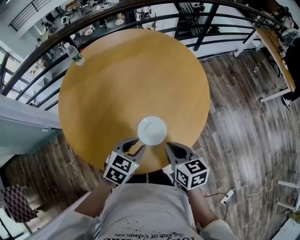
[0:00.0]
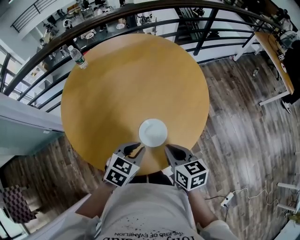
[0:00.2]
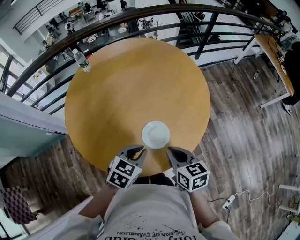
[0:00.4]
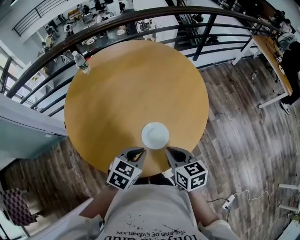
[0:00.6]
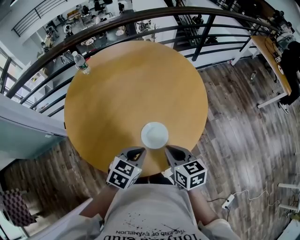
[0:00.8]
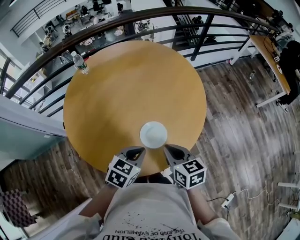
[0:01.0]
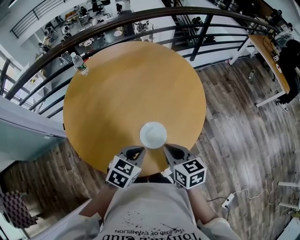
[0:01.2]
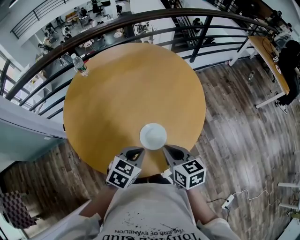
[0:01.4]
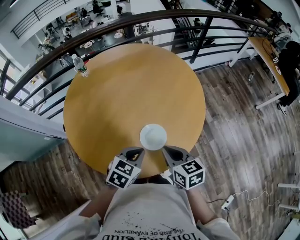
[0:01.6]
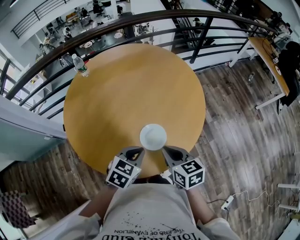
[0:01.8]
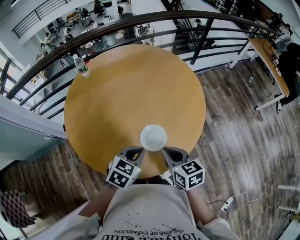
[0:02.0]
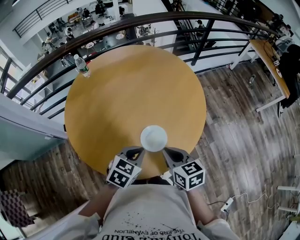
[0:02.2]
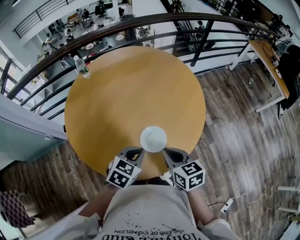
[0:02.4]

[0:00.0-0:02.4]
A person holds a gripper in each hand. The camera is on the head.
0:00.0 to 0:01.2: The left gripper closes.
0:01.2 to 0:02.4: Both grippers stay about where they are.

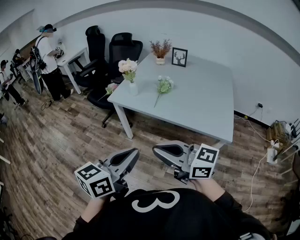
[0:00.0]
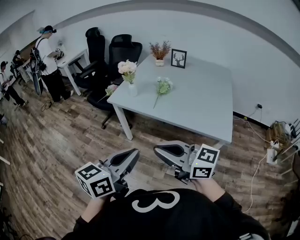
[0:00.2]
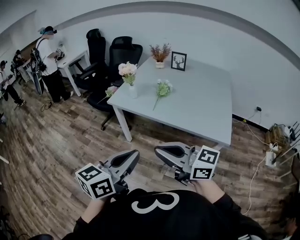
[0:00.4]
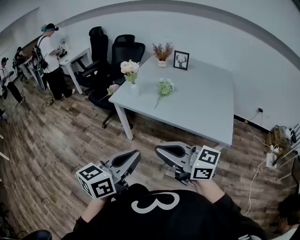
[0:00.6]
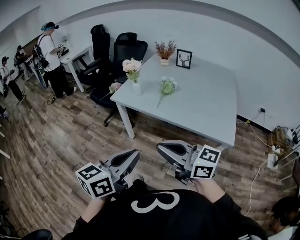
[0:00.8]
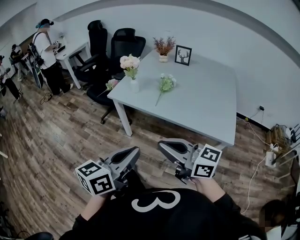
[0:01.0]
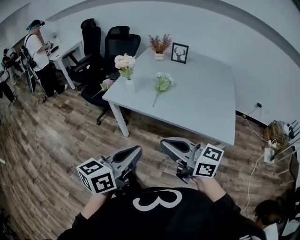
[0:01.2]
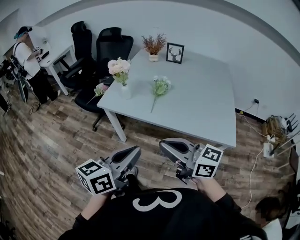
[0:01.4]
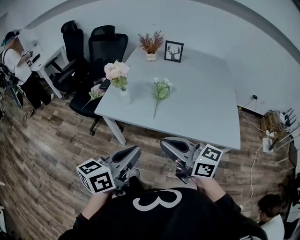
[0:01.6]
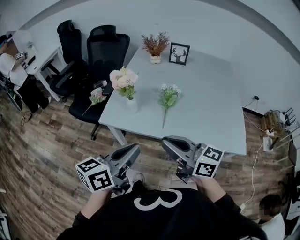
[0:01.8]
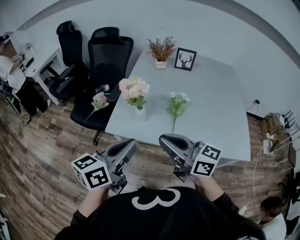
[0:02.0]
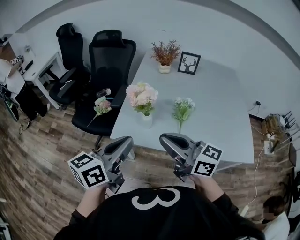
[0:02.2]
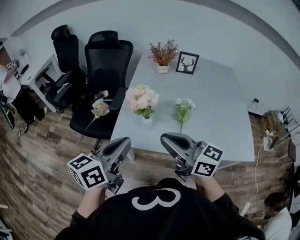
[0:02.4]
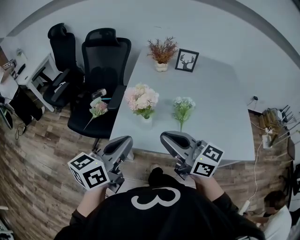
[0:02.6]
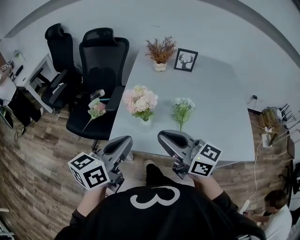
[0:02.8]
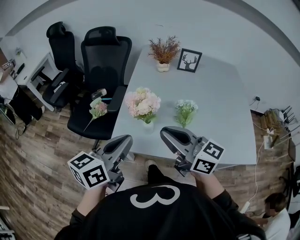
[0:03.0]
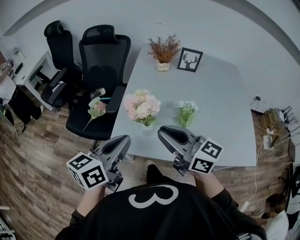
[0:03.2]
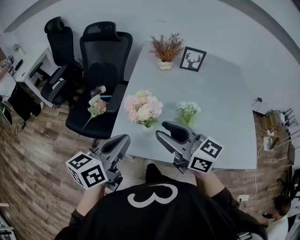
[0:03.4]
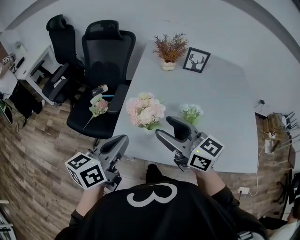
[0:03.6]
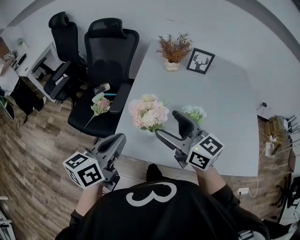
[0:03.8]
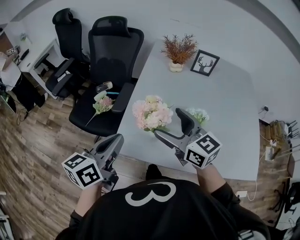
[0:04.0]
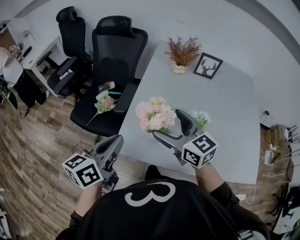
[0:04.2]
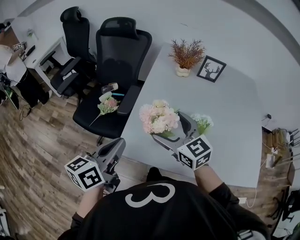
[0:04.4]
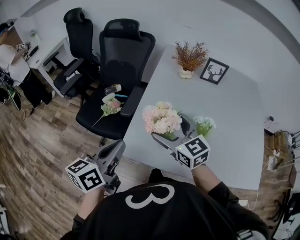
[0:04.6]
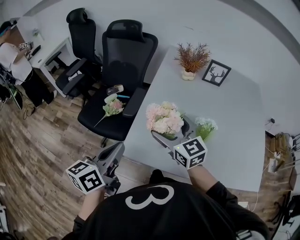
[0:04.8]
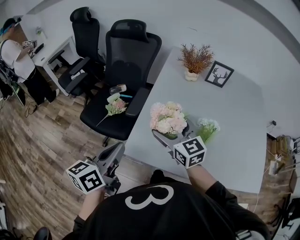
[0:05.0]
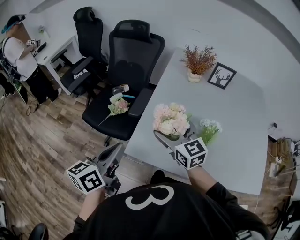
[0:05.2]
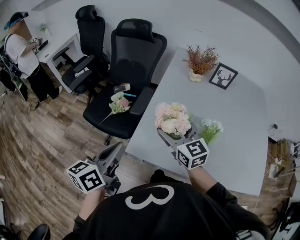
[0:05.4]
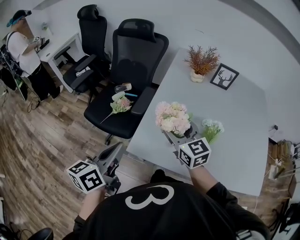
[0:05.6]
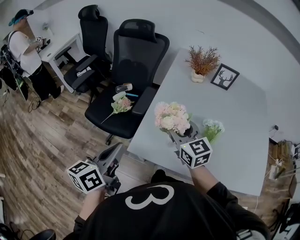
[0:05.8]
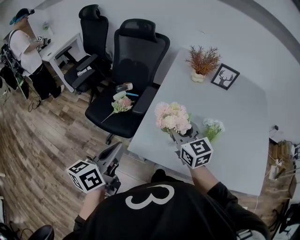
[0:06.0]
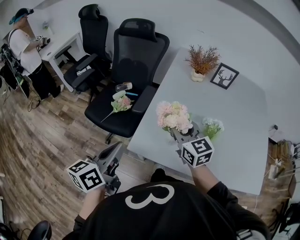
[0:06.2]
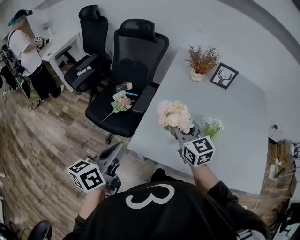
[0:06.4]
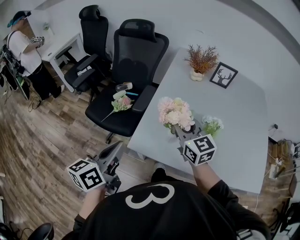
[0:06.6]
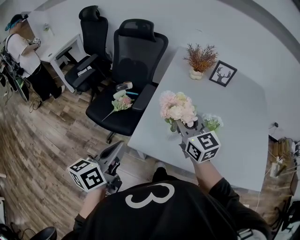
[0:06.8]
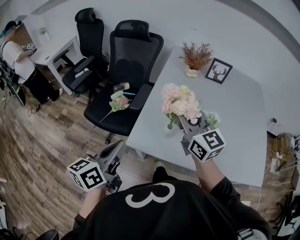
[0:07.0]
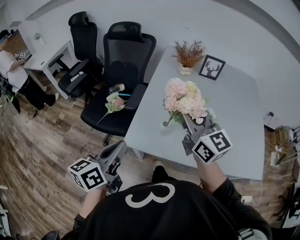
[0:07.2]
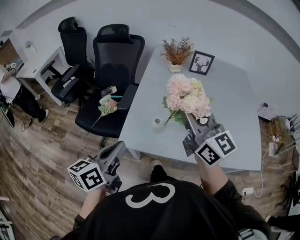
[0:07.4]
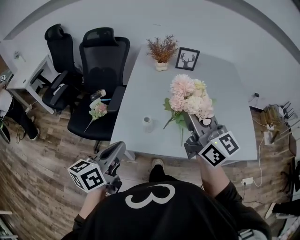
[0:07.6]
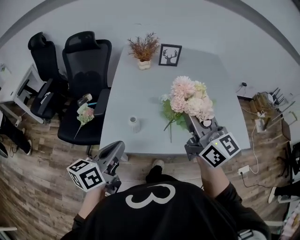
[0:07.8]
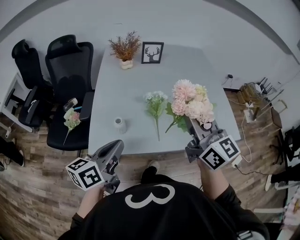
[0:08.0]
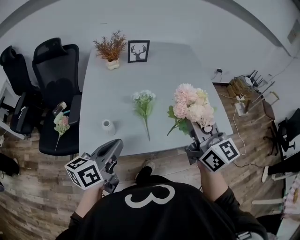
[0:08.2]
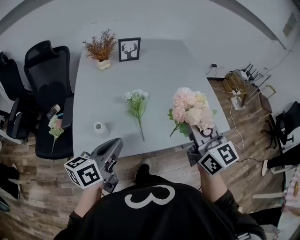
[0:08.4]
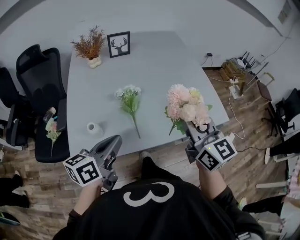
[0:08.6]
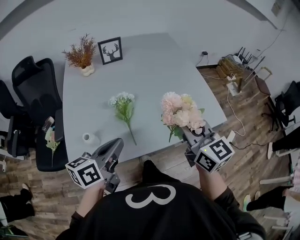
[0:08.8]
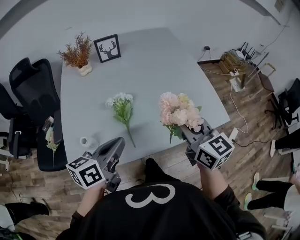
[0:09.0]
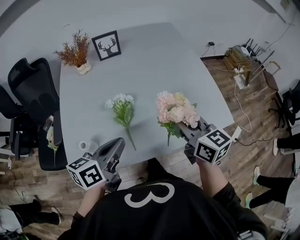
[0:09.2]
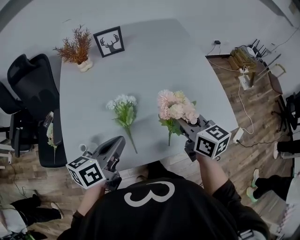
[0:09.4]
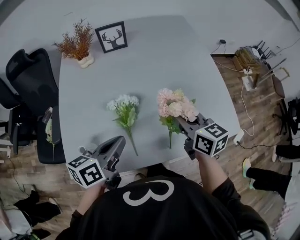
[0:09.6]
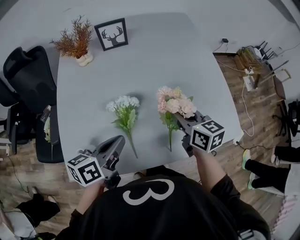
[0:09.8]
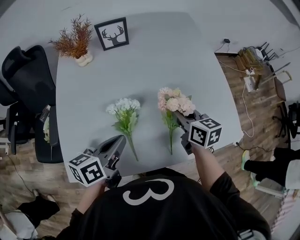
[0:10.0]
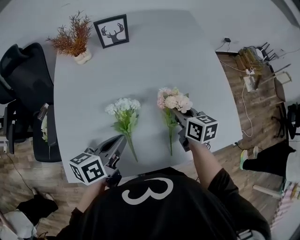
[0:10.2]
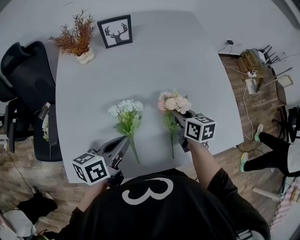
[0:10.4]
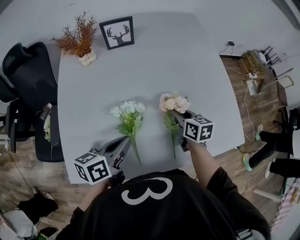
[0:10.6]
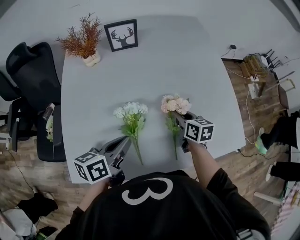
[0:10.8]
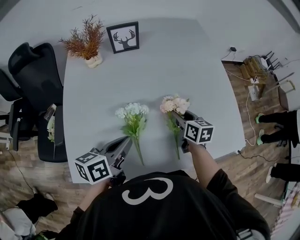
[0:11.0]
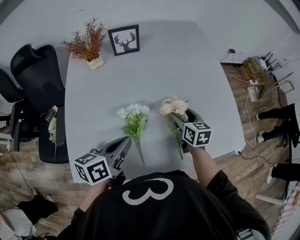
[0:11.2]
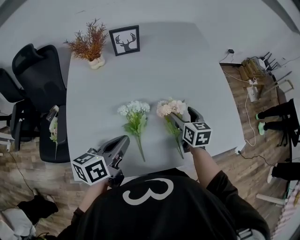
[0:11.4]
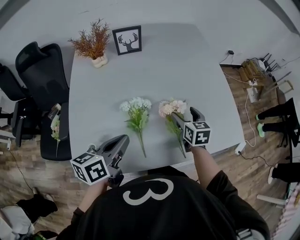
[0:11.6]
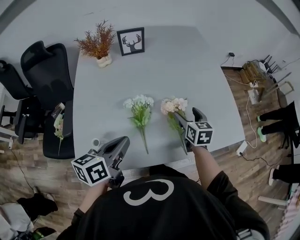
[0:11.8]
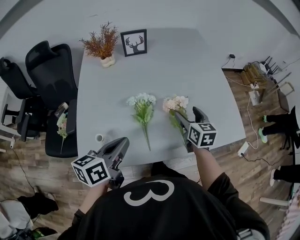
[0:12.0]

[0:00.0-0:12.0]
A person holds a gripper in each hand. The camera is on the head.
0:00.0 to 0:01.6: Both grippers move forward, about 20 cm. The right gripper turns by roughly 20 degrees.
0:01.6 to 0:03.0: Both grippers travel together forward and to the left, some 30 cm.
0:03.0 to 0:04.4: The left gripper shifts roughly 10 cm to the left and forward; the right gripper travels forward and downward by roughly 15 cm, swivels about 30 degrees, and opens up.
0:04.4 to 0:06.0: The left gripper travels to the left by approximately 5 cm, while the right gripper closes its fingers.
0:06.0 to 0:07.6: The left gripper heads to the right, covering some 10 cm. The right gripper heads upward, to the right and backward, covering approximately 25 cm, and changes its angle by approximately 30 degrees.
0:07.6 to 0:09.0: The left gripper moves roughly 25 cm, and turns by some 30 degrees; the right gripper shifts by some 25 cm, and changes its angle by approximately 30 degrees.
0:09.0 to 0:10.4: The left gripper is displaced forward and downward by roughly 15 cm, while the right gripper moves downward and forward, roughly 30 cm, and rotates approximately 30 degrees.
0:10.4 to 0:12.0: The two grippers go approximately 10 cm backward and upward. The right gripper opens up.

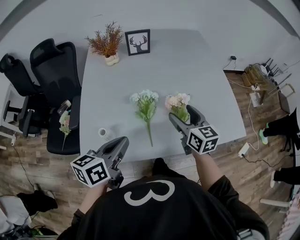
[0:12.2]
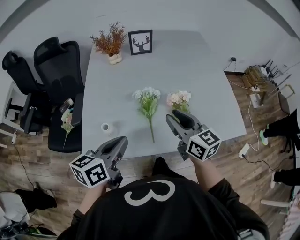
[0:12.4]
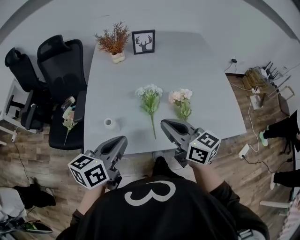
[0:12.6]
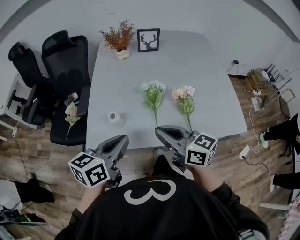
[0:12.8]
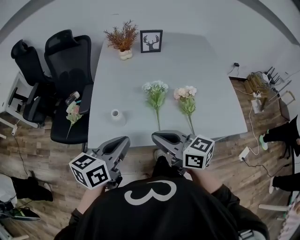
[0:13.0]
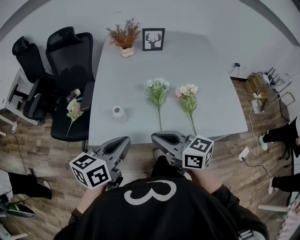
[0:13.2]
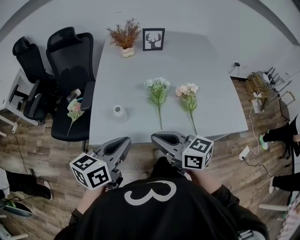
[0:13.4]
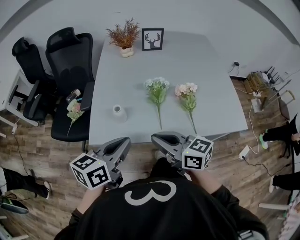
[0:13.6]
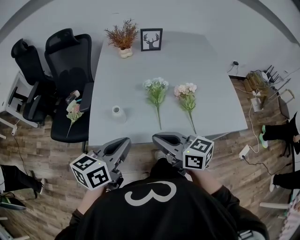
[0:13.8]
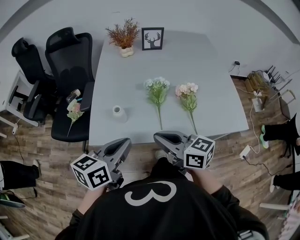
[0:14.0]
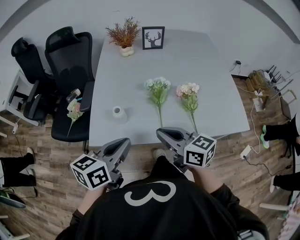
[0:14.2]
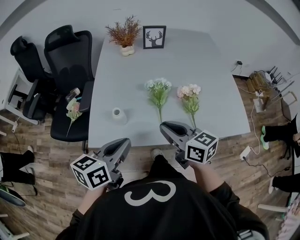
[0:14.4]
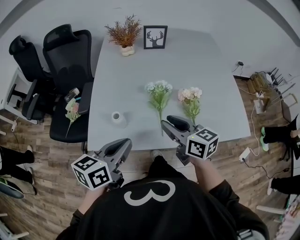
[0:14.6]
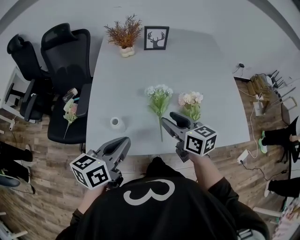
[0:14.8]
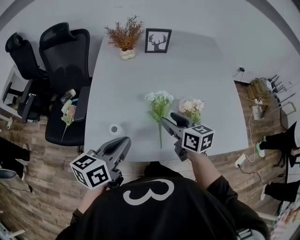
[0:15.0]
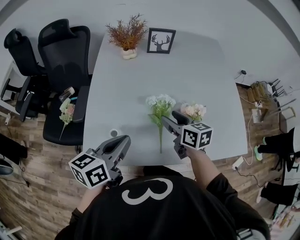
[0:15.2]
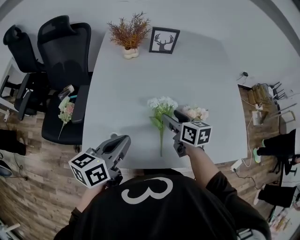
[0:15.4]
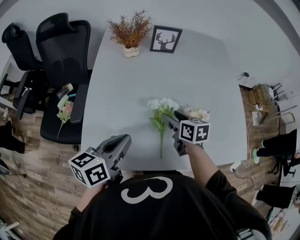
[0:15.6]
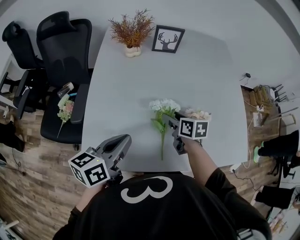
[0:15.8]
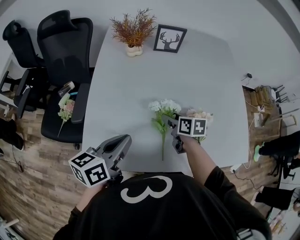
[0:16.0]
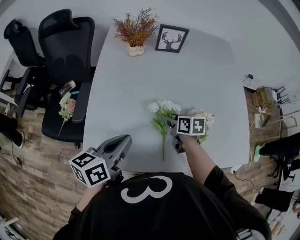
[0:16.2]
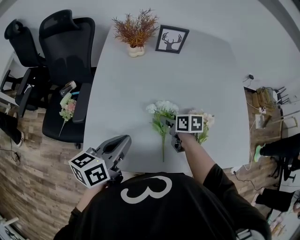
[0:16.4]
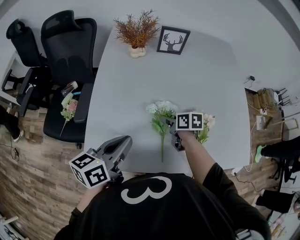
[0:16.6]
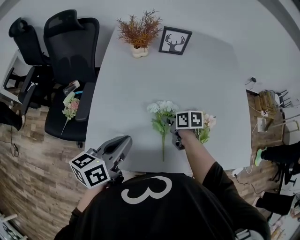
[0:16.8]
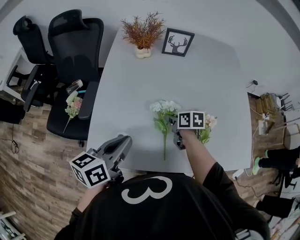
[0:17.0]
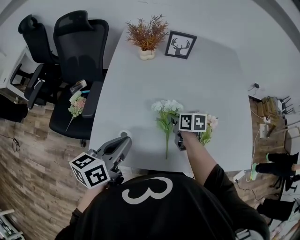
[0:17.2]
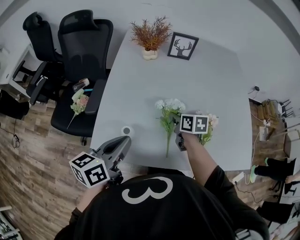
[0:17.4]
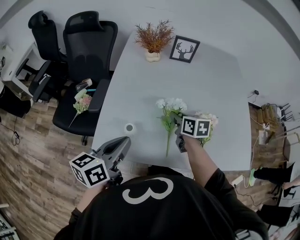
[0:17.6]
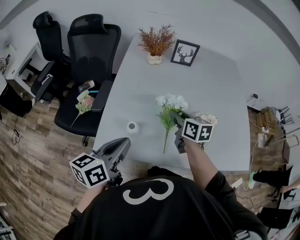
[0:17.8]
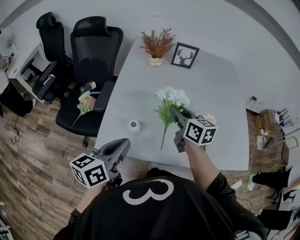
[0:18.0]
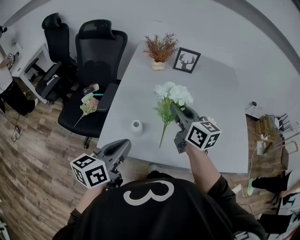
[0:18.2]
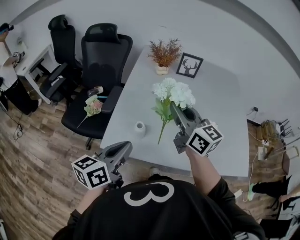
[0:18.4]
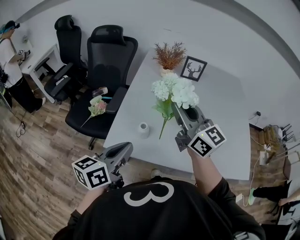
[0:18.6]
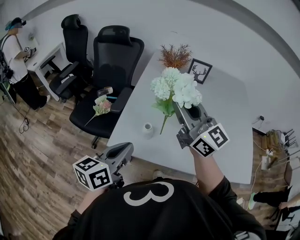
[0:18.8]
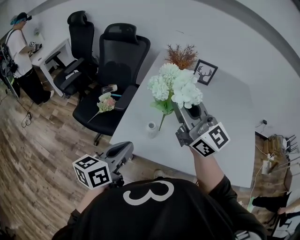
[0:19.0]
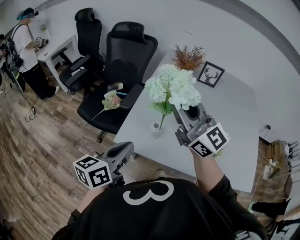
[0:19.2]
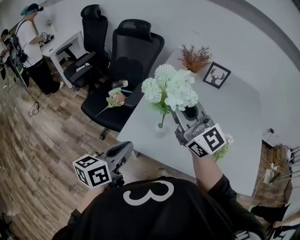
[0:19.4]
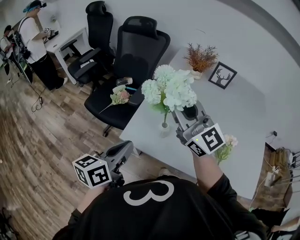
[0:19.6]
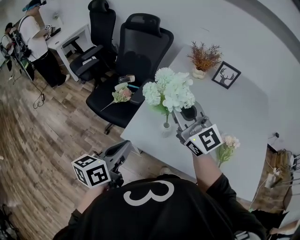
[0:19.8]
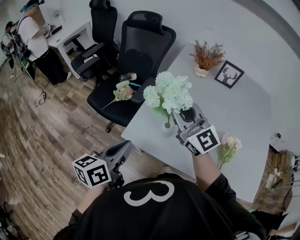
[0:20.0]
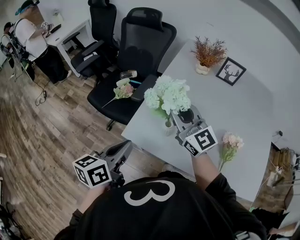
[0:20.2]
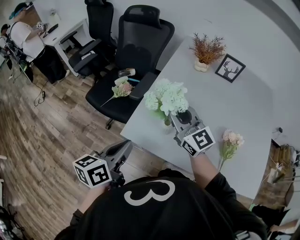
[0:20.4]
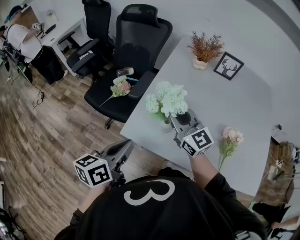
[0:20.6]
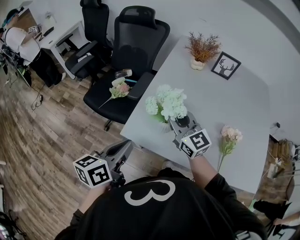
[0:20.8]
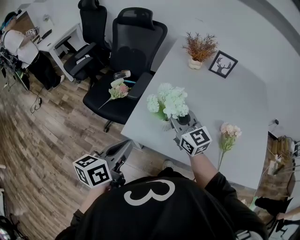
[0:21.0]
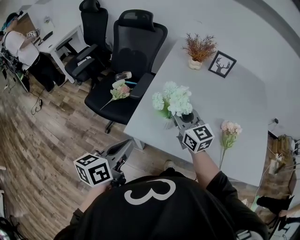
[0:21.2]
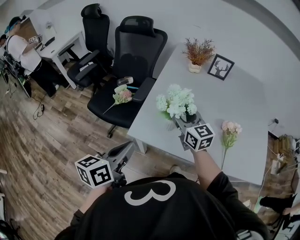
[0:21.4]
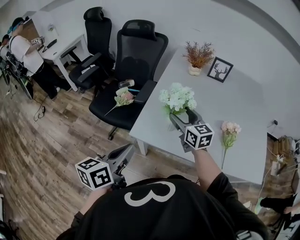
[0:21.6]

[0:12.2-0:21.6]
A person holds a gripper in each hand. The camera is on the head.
0:12.2 to 0:13.8: The left gripper moves backward and to the left, about 10 cm; the right gripper heads to the left and backward, covering about 25 cm, turns by some 40 degrees, and closes up.
0:13.8 to 0:15.4: The right gripper goes approximately 25 cm forward, turns by roughly 30 degrees, and opens. Meanwhile the left gripper heads forward, covering some 15 cm.
0:15.4 to 0:17.0: The right gripper goes about 10 cm downward, swivels approximately 20 degrees, and closes.
0:17.0 to 0:18.4: The left gripper goes roughly 15 cm backward, to the left and upward, while the right gripper goes roughly 30 cm upward, and points its fingers about 50 degrees further upward.
0:18.4 to 0:20.0: The right gripper travels to the left by about 15 cm, and swivels about 30 degrees. The left gripper is displaced to the left by roughly 10 cm.
0:20.0 to 0:21.6: The right gripper goes about 10 cm downward, turns by some 30 degrees, and opens. The left gripper travels backward by roughly 5 cm.
